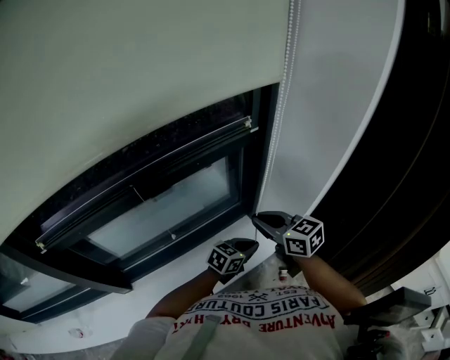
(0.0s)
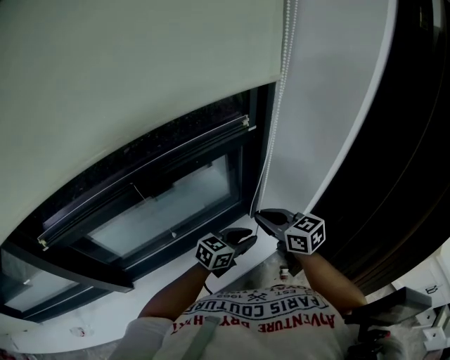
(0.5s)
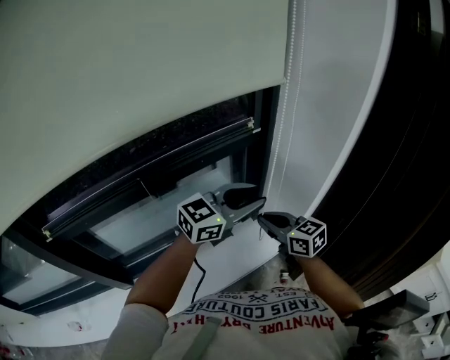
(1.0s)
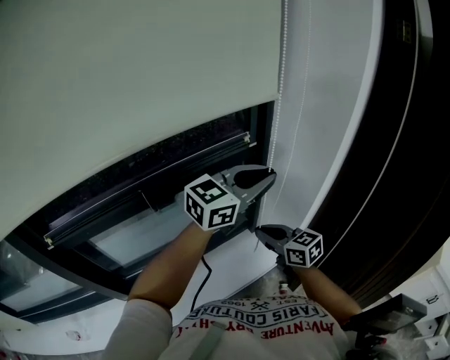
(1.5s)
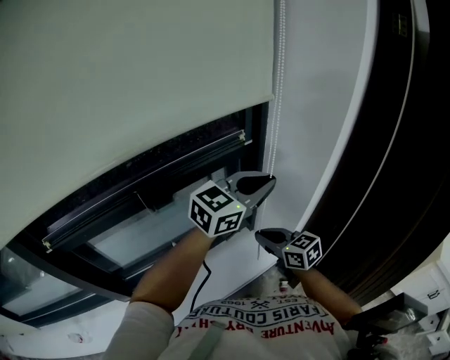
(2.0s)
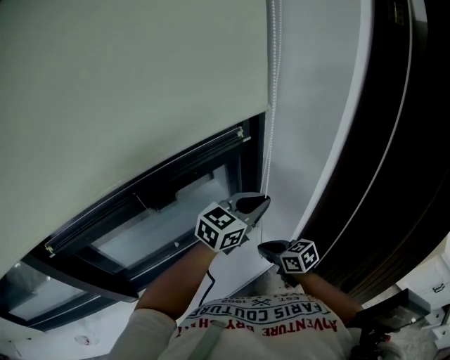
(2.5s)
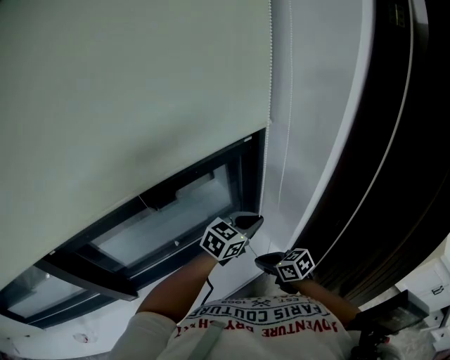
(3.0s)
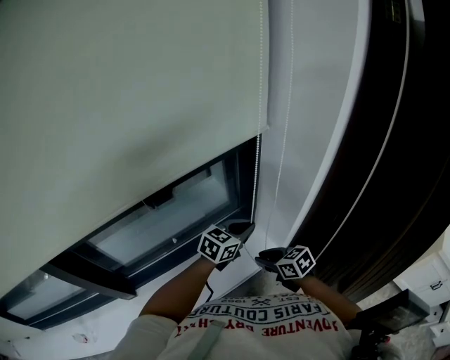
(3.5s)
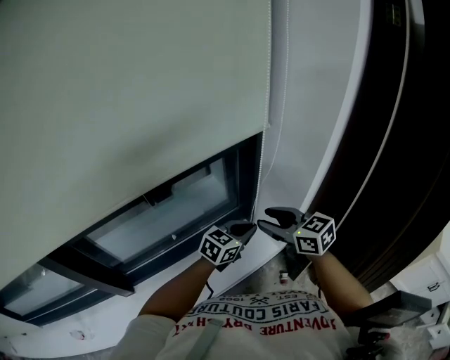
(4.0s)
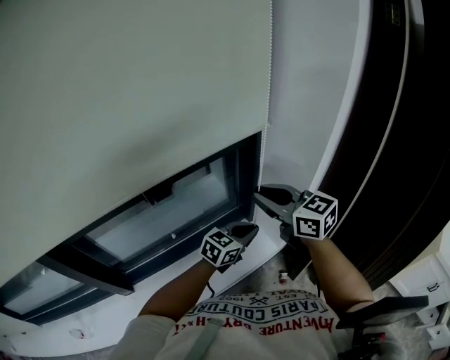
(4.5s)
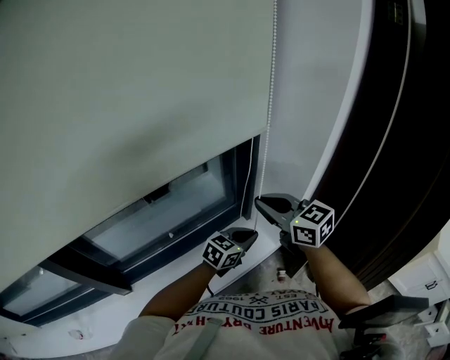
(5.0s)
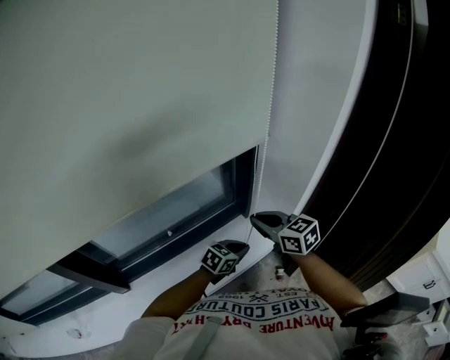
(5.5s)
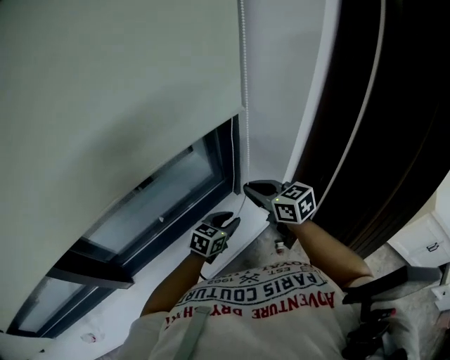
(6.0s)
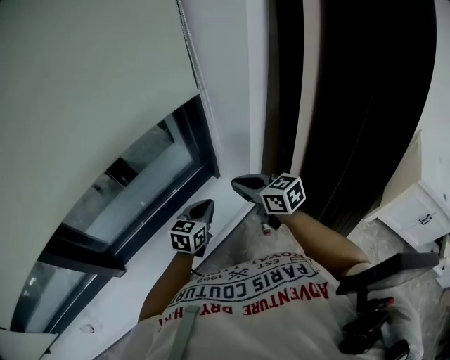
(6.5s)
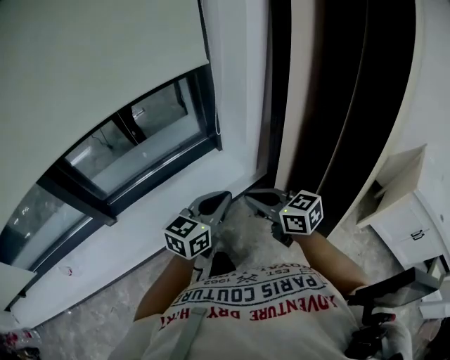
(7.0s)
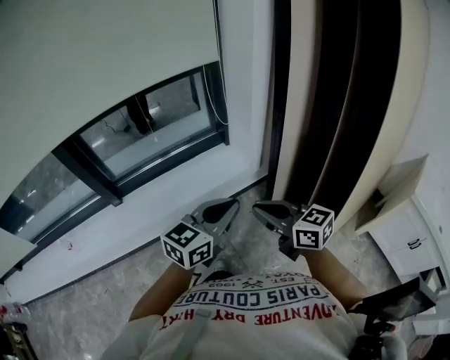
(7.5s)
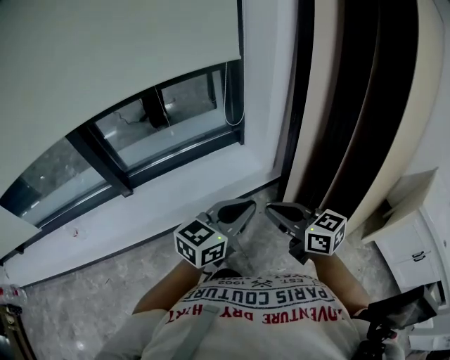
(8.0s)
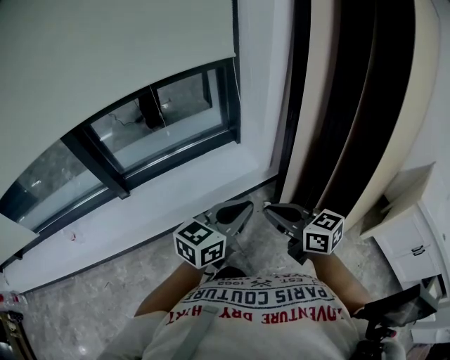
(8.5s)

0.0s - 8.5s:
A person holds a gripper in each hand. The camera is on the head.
0.0s - 2.0s: The left gripper is displaced upward by about 35 cm, rotates some 30 degrees, and opens, then closes again.
2.0s - 4.0s: The left gripper goes about 25 cm downward, and rotates some 20 degrees. Meanwhile the right gripper travels downward and back again, about 15 cm each way, and opens.
4.0s - 6.5s: The right gripper heads backward and to the right, covering some 10 cm, goes upward and returns, about 10 cm each way, and closes its fingers; the left gripper shifts some 10 cm backward, reaches about 10 cm downward, then returns, and opens, then closes again.
6.5s - 8.5s: The left gripper is displaced backward and upward by some 35 cm. Meanwhile the right gripper shifts approximately 35 cm backward.

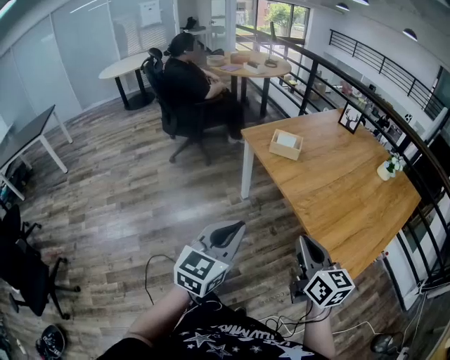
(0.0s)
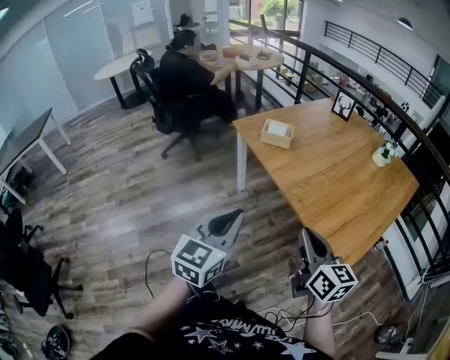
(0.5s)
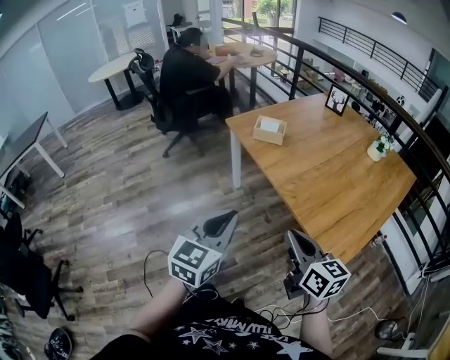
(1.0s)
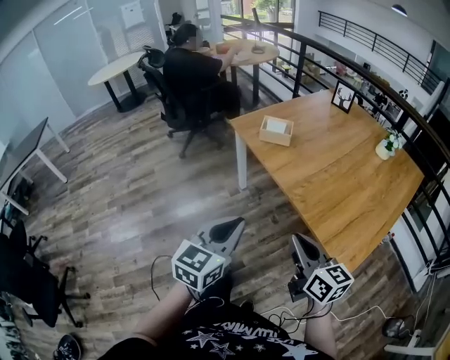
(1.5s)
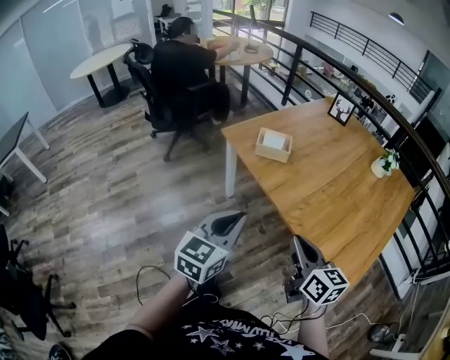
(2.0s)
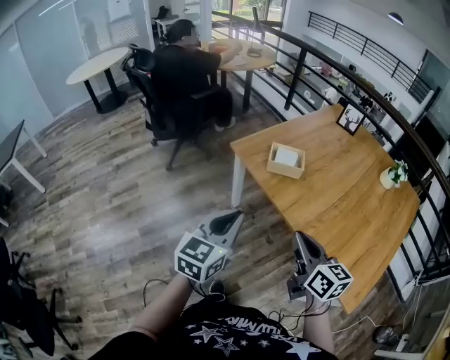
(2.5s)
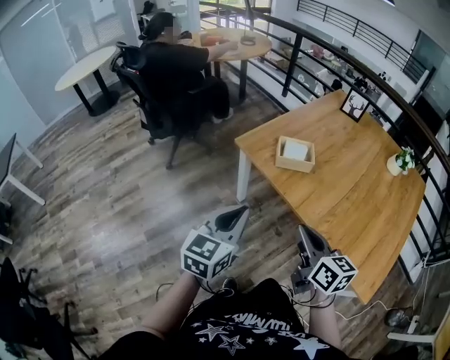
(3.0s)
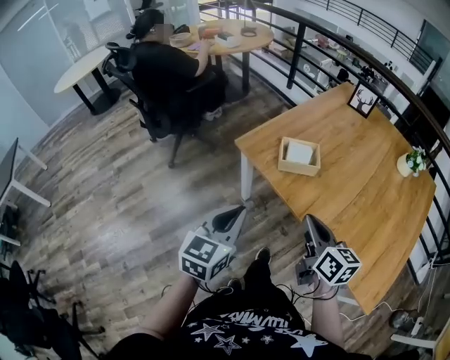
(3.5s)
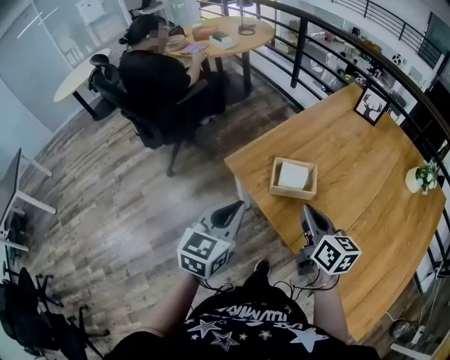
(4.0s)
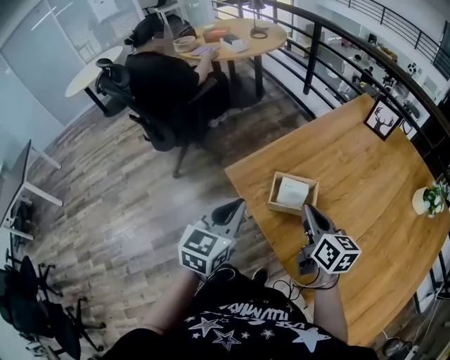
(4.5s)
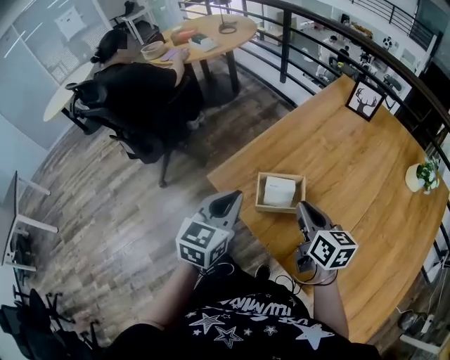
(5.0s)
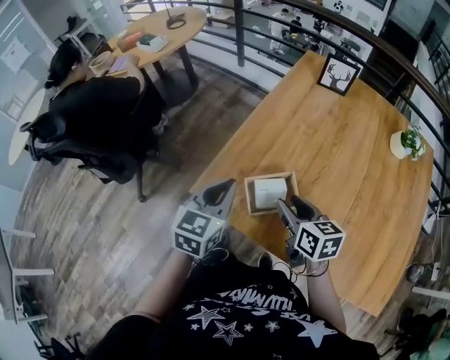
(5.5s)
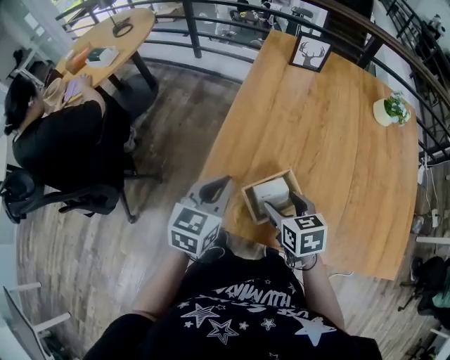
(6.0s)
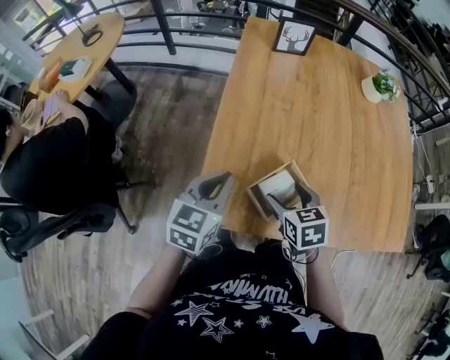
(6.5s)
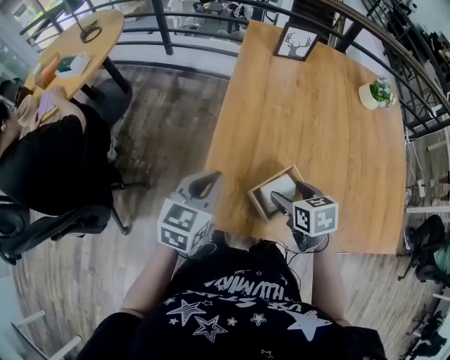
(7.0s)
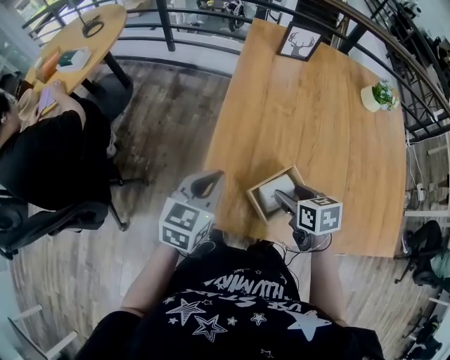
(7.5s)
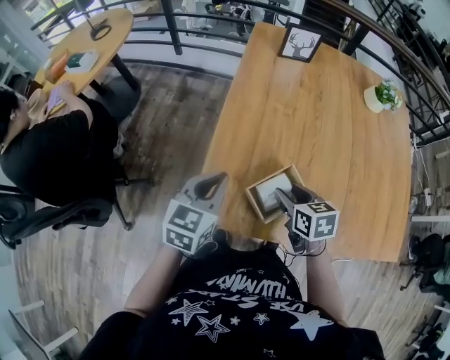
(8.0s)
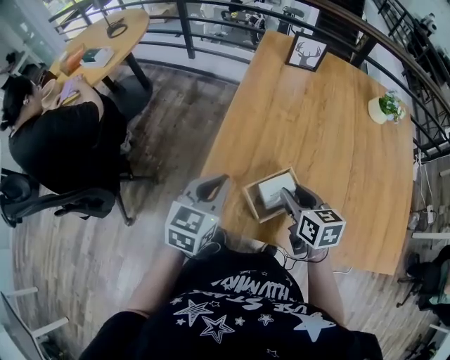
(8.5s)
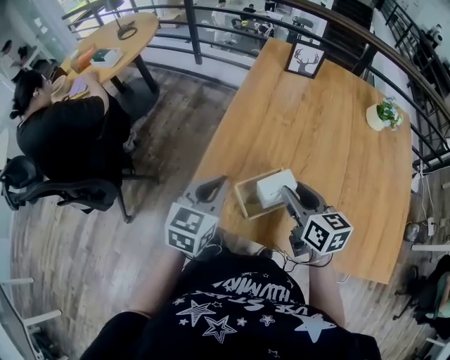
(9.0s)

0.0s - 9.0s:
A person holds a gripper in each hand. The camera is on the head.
0.0s - 2.0s: The two grippers go some 15 cm forward.
2.0s - 4.5s: The pair of grippers is taken forward, approximately 40 cm.
4.5s - 7.0s: The right gripper moves about 15 cm, tilts its fingers roughly 40 degrees downward, and opens up. The left gripper changes place by about 30 cm, and swivels about 50 degrees.
7.0s - 9.0s: The right gripper moves upward and to the right, about 10 cm, rotates about 30 degrees, and closes up. The left gripper moves to the right and backward, about 10 cm.

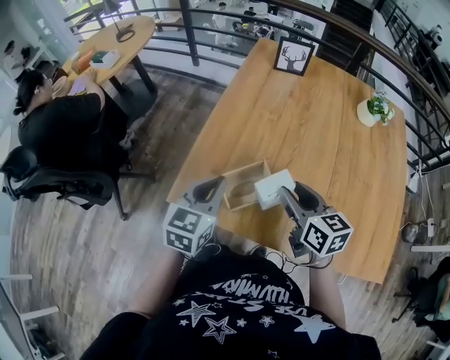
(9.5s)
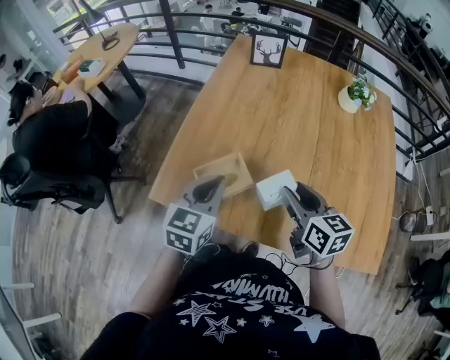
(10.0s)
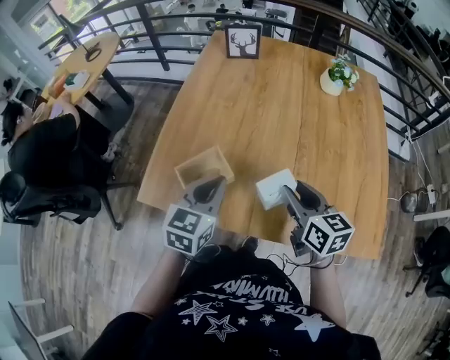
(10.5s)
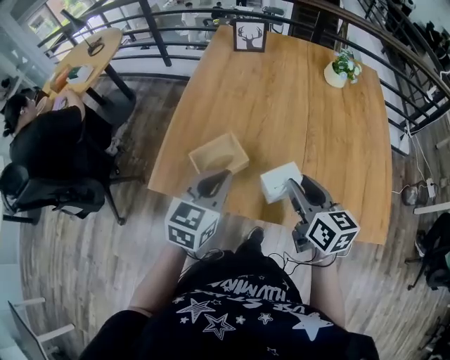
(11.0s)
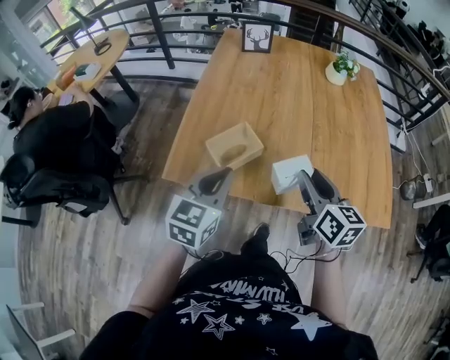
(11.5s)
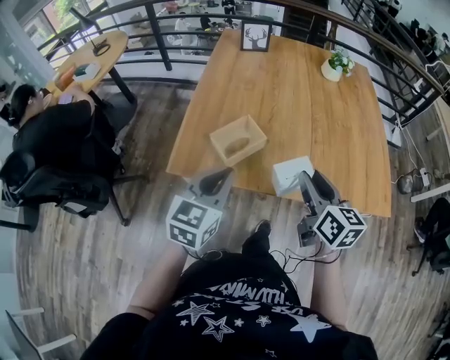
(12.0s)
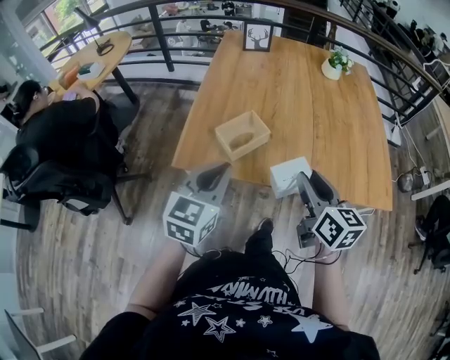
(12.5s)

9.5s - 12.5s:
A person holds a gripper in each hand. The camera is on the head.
9.5s - 11.0s: The two grippers go roughly 15 cm to the right and backward.
11.0s - 12.5s: The grippers both shift backward and to the left by roughly 15 cm.

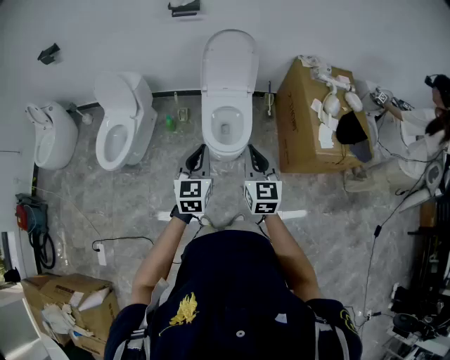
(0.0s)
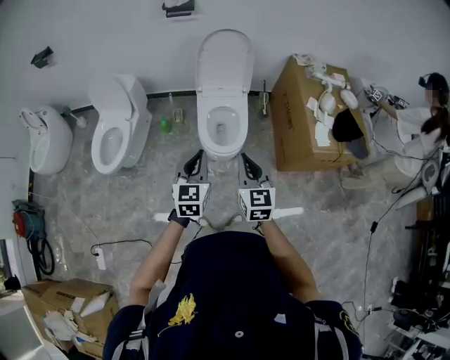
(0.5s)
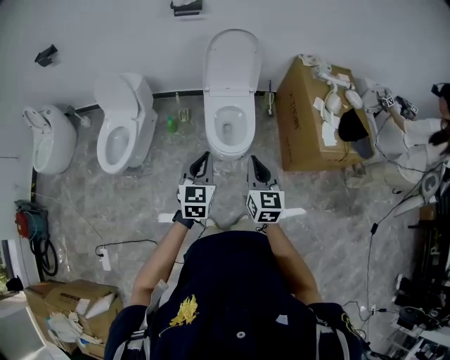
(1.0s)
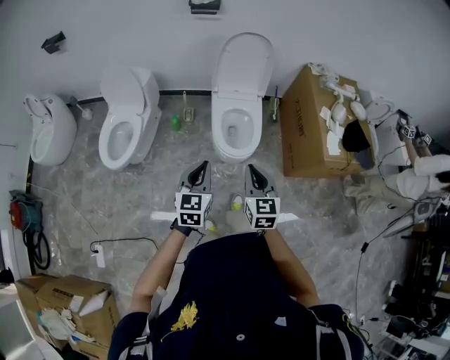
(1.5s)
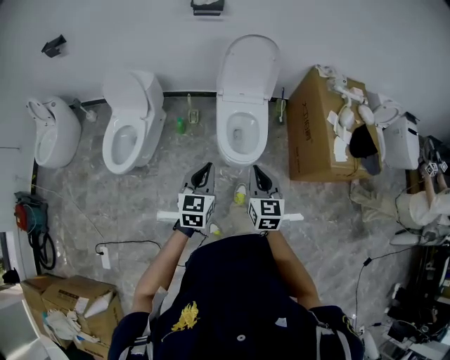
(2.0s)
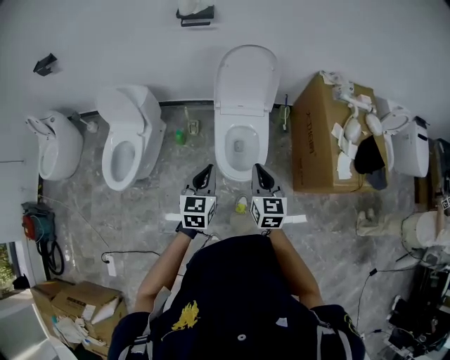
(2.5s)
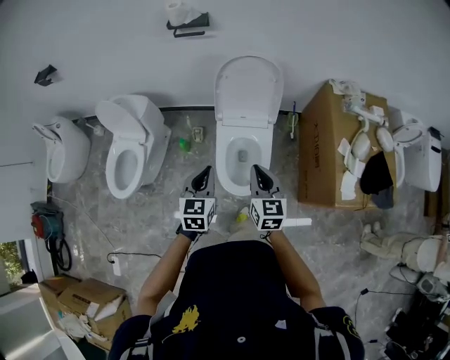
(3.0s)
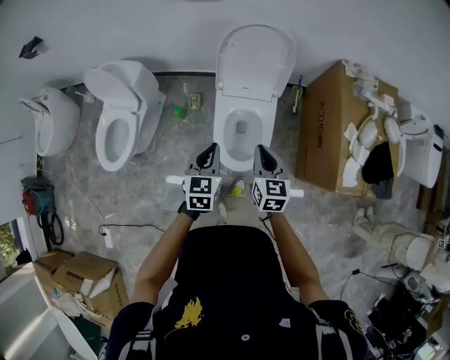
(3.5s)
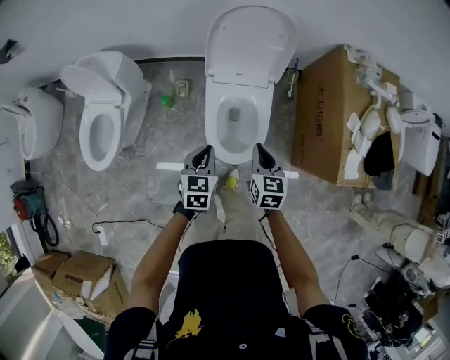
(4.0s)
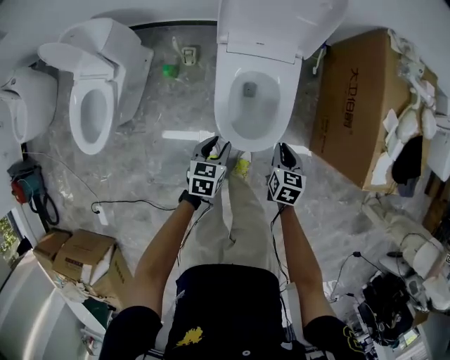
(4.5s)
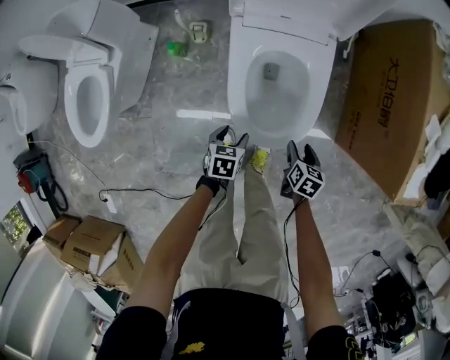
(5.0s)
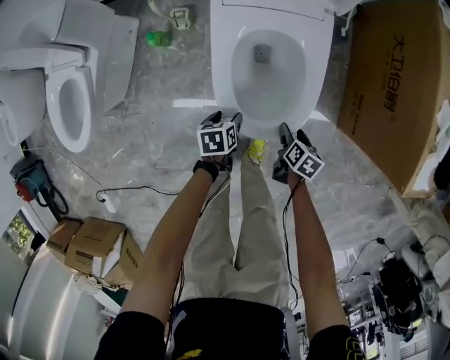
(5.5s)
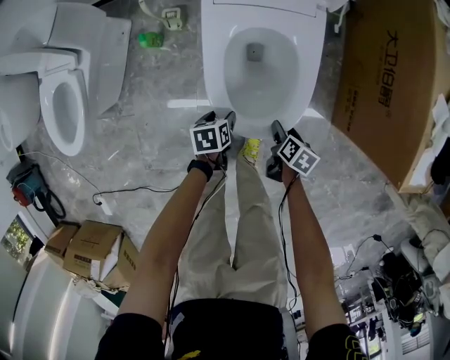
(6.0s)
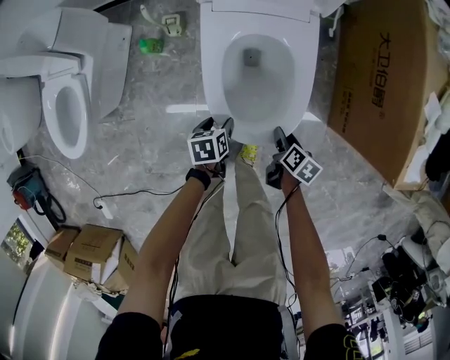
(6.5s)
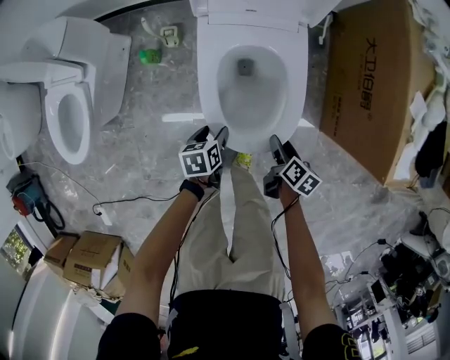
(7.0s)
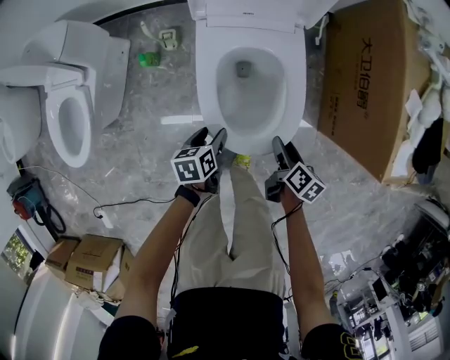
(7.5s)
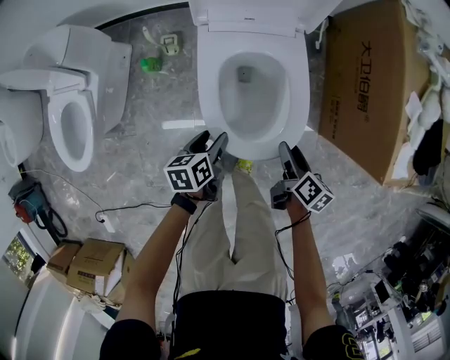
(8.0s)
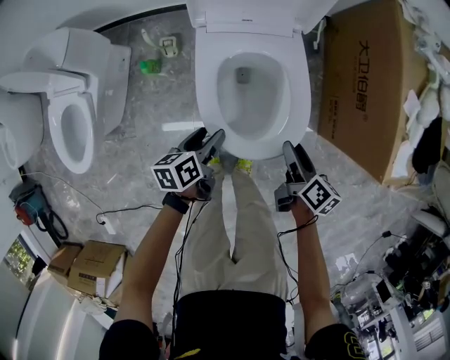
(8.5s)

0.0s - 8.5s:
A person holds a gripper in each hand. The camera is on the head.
0.0s - 2.0s: Both grippers move to the left and downward, roughly 10 cm.
2.0s - 4.0s: The two grippers go approximately 35 cm forward and downward.
4.0s - 6.5s: The two grippers go about 40 cm downward. The left gripper rotates approximately 40 degrees, and opens up; the right gripper twists roughly 50 degrees clockwise, seen from behind, and opens its fingers.
6.5s - 8.5s: The two grippers go about 15 cm upward. The left gripper changes its angle by roughly 20 degrees, while the right gripper rotates roughly 20 degrees.
